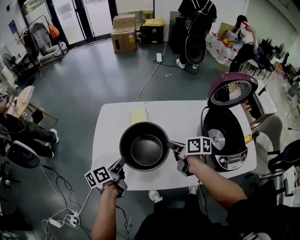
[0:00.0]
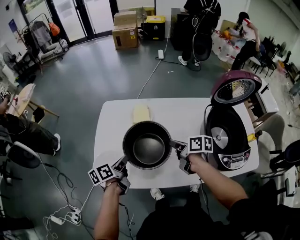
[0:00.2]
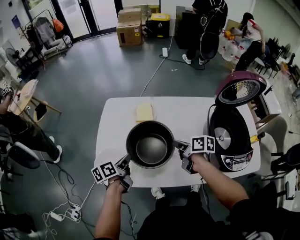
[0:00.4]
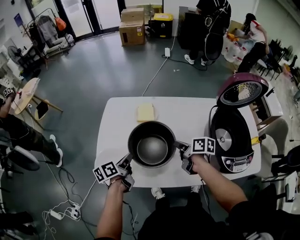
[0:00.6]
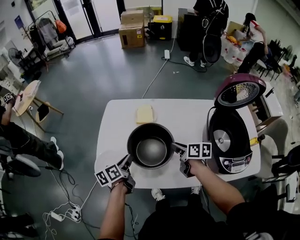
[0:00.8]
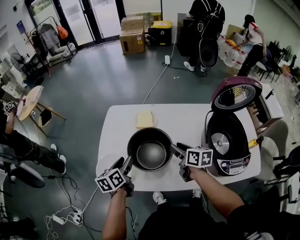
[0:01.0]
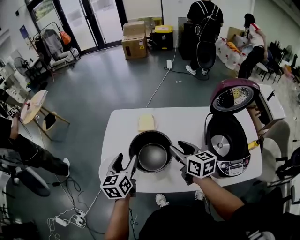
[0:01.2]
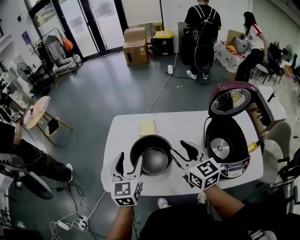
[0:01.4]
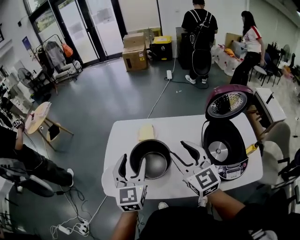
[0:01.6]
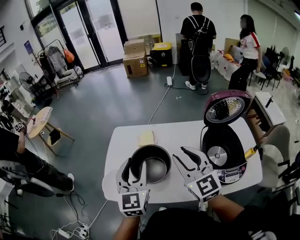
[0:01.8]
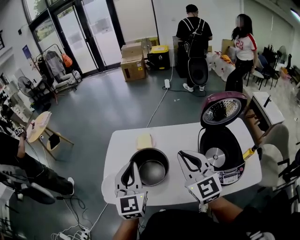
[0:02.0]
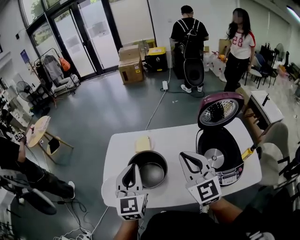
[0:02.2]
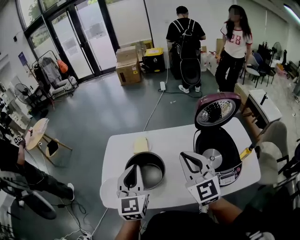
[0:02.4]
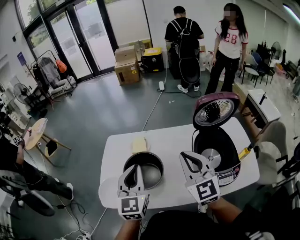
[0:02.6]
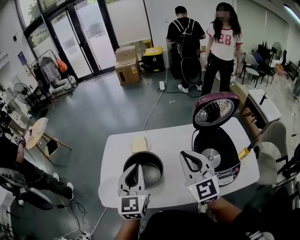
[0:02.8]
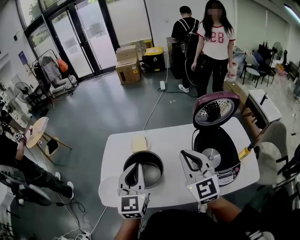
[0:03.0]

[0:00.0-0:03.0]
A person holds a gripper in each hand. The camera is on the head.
0:00.0 to 0:01.6: The left gripper travels upward and to the right by approximately 20 cm, rotates around the line of its fingers by about 60 degrees, clockwise from behind, and opens; the right gripper travels upward by about 20 cm, and twists roughly 60 degrees counterclockwise, seen from behind.
0:01.6 to 0:03.0: Both grippers move to the right, approximately 5 cm. The left gripper closes its fingers.

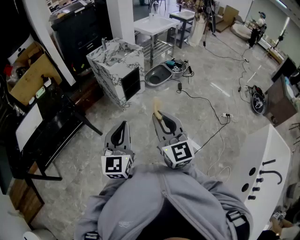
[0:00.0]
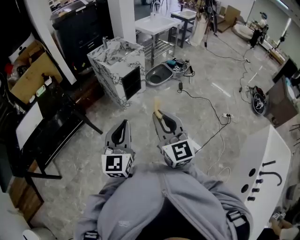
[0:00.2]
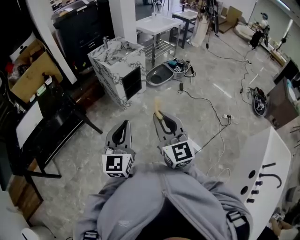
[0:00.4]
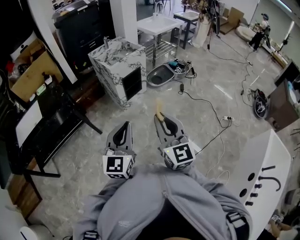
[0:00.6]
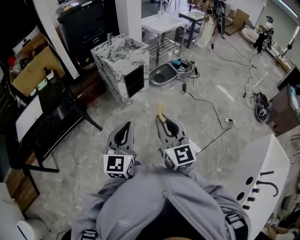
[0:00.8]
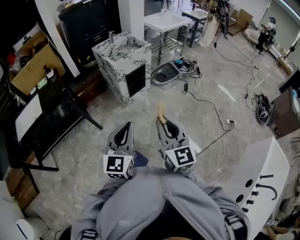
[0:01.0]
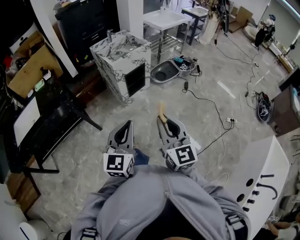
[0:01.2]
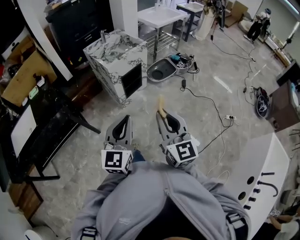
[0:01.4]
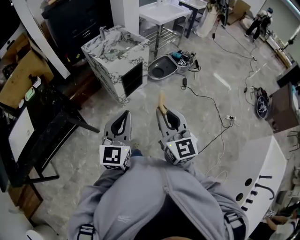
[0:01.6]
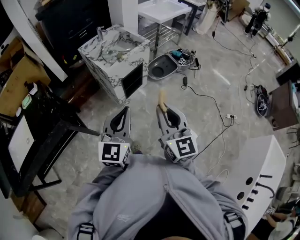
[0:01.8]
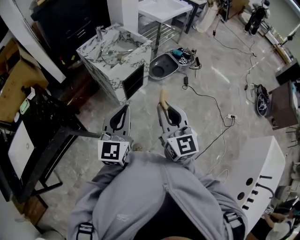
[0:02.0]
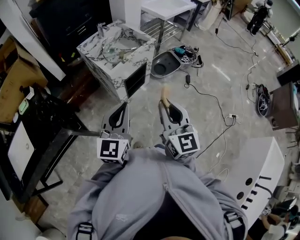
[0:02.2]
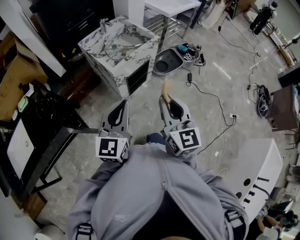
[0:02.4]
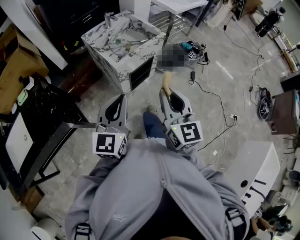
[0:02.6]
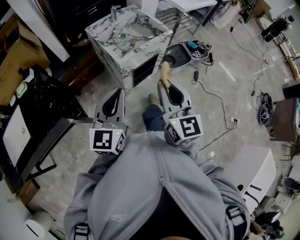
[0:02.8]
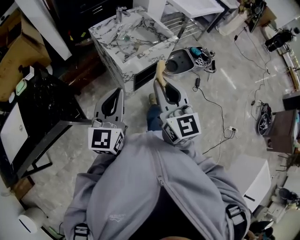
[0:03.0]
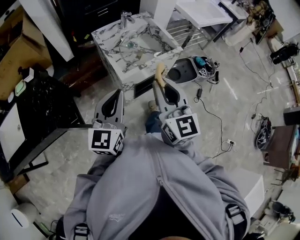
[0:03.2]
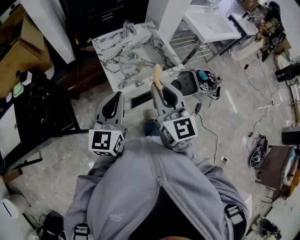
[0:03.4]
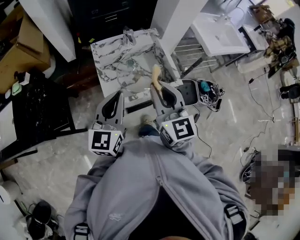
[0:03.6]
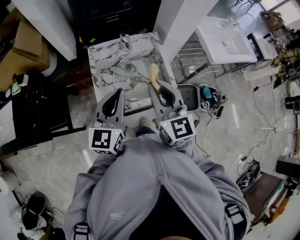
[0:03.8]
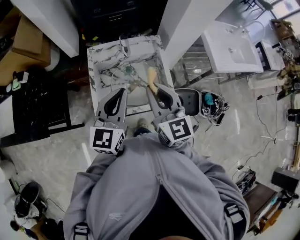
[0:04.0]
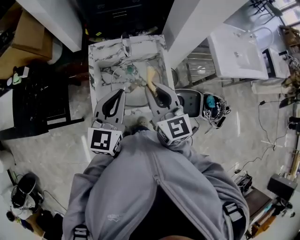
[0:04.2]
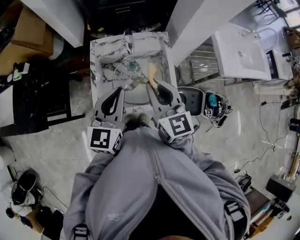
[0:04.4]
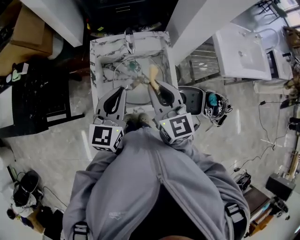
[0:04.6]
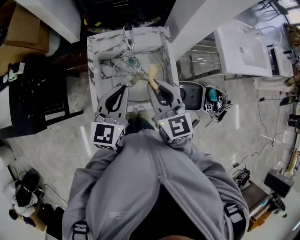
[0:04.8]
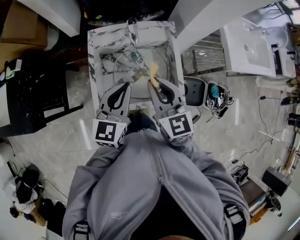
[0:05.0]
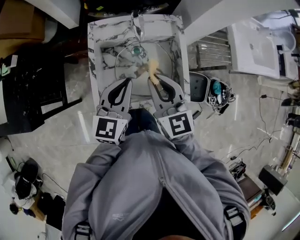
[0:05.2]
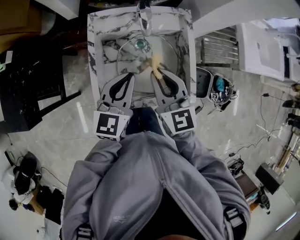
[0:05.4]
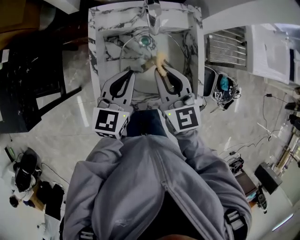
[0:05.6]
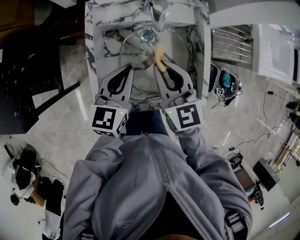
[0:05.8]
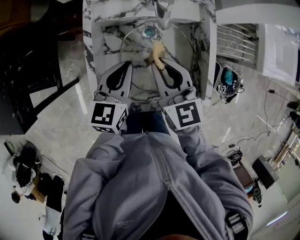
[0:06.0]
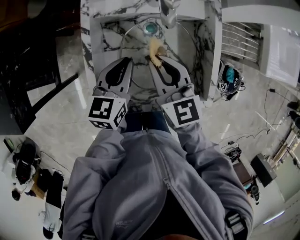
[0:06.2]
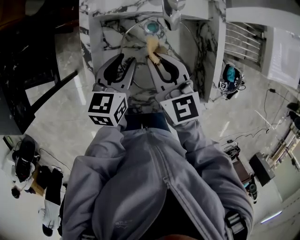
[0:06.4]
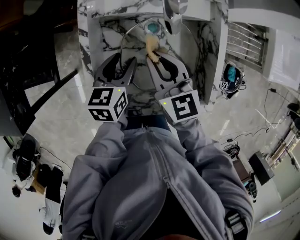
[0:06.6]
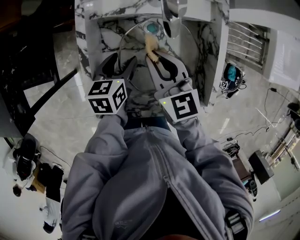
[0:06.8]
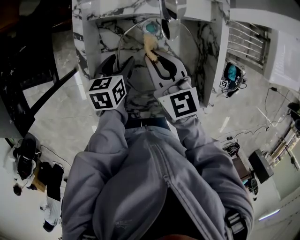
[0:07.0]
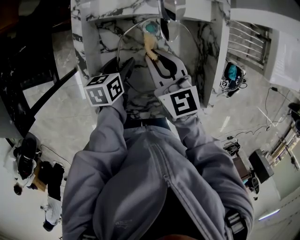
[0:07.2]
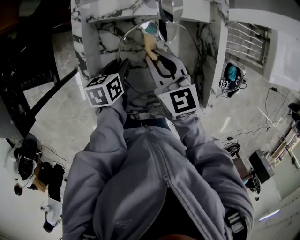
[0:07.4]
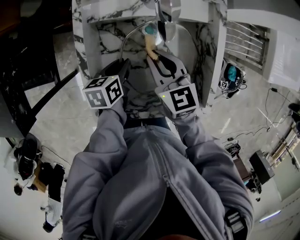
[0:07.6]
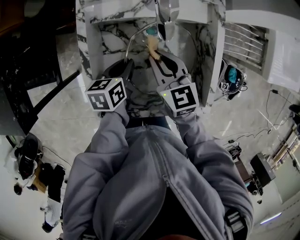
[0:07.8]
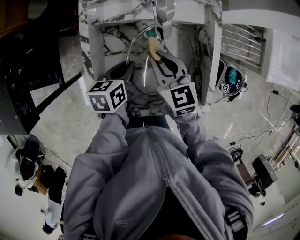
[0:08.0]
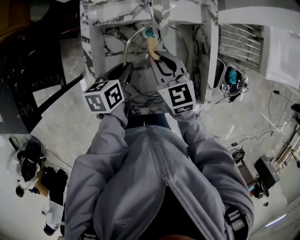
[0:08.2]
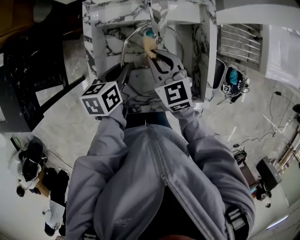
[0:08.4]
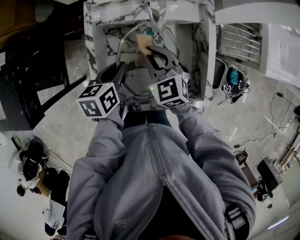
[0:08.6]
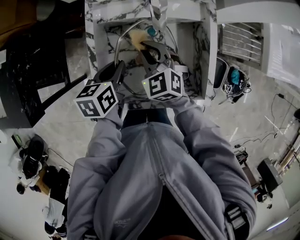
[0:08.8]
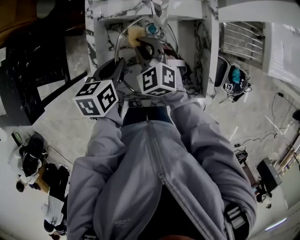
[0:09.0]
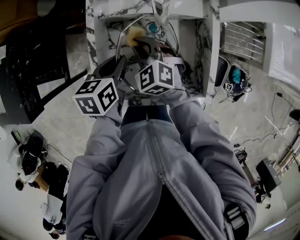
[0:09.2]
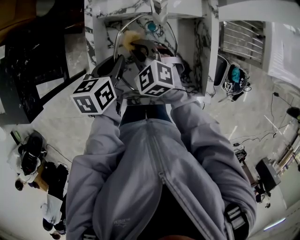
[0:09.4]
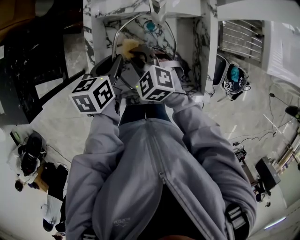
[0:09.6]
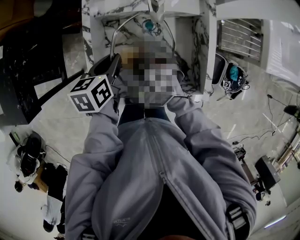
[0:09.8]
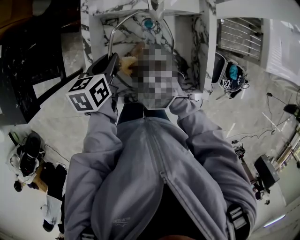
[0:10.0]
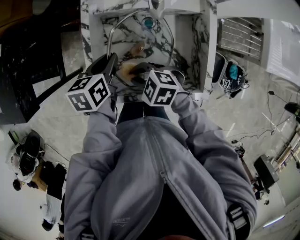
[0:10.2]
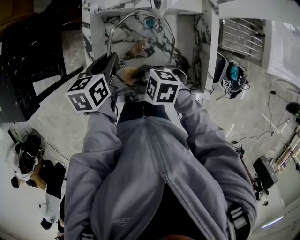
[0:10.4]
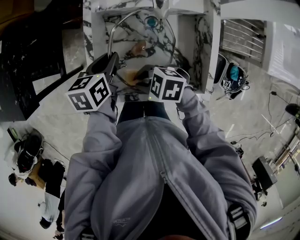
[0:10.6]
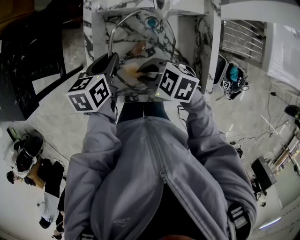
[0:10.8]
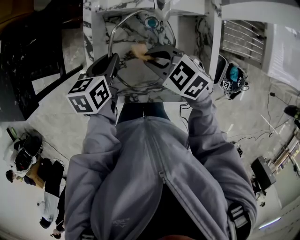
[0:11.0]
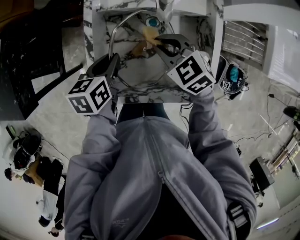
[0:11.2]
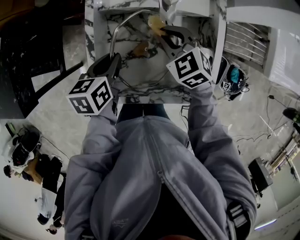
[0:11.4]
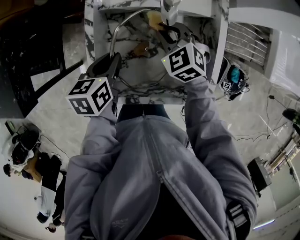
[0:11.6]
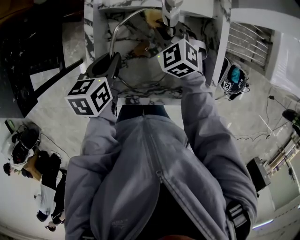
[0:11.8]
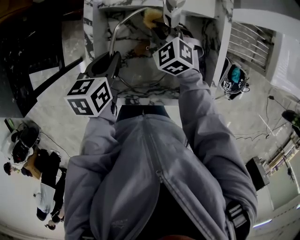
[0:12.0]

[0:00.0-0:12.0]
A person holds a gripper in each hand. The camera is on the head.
0:00.0 to 0:01.6: Both grippers travel together forward, some 25 cm.
0:01.6 to 0:03.0: The grippers both shift forward and to the left by approximately 35 cm.
0:03.0 to 0:04.4: The two grippers travel together, approximately 50 cm. The right gripper rotates approximately 40 degrees, while the left gripper rotates about 30 degrees.
0:04.4 to 0:06.0: The right gripper goes about 25 cm downward, forward and to the left. The left gripper heads downward and forward, covering some 30 cm, and changes its angle by some 20 degrees.
0:06.0 to 0:07.6: The right gripper goes approximately 10 cm downward, while the left gripper heads downward, covering some 15 cm, swivels approximately 40 degrees, and opens, then closes once more.
0:07.6 to 0:09.0: The left gripper goes roughly 10 cm upward; the right gripper changes its angle by roughly 40 degrees.
0:09.0 to 0:10.4: The right gripper ends up about 20 cm from where it was, and changes its angle by roughly 50 degrees.
0:10.4 to 0:12.0: The right gripper changes place by roughly 25 cm, and turns by about 40 degrees.

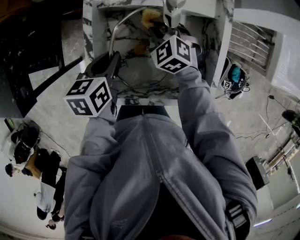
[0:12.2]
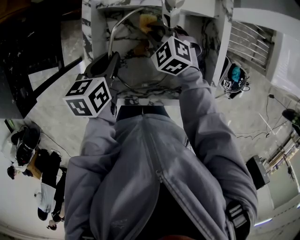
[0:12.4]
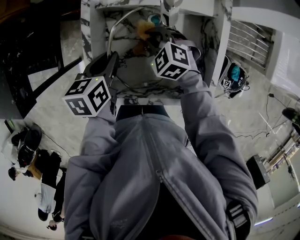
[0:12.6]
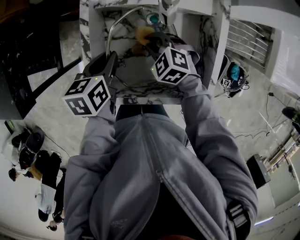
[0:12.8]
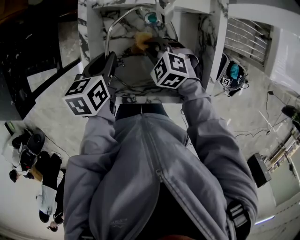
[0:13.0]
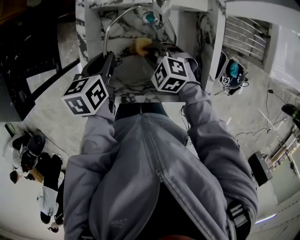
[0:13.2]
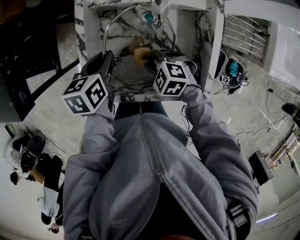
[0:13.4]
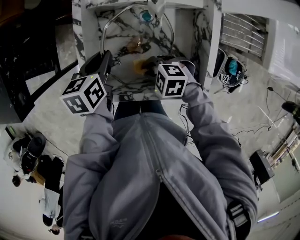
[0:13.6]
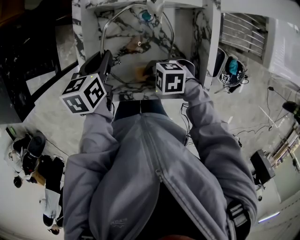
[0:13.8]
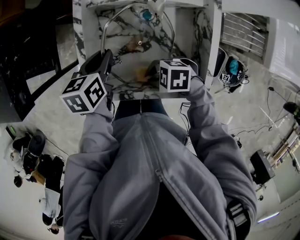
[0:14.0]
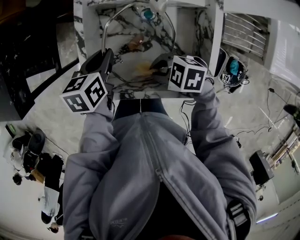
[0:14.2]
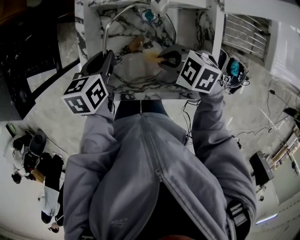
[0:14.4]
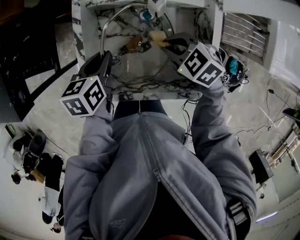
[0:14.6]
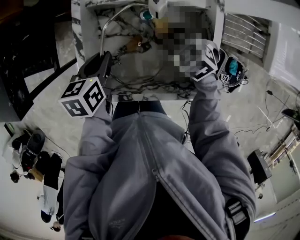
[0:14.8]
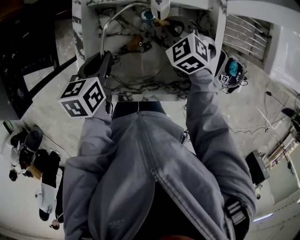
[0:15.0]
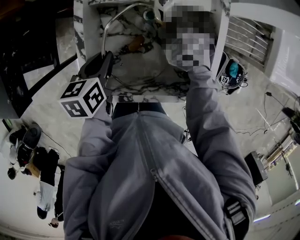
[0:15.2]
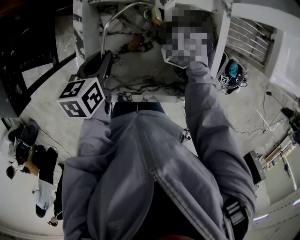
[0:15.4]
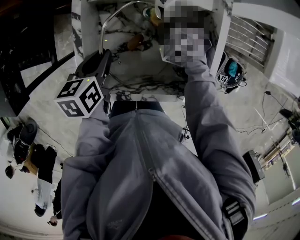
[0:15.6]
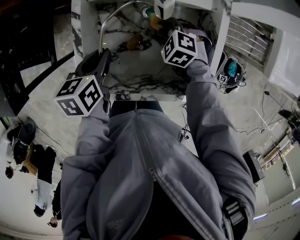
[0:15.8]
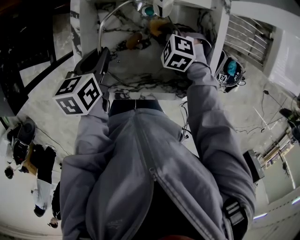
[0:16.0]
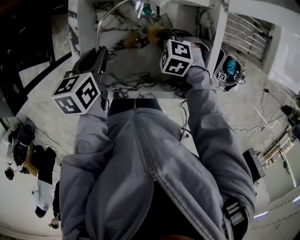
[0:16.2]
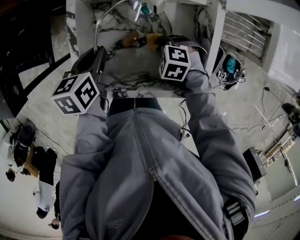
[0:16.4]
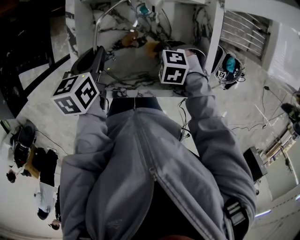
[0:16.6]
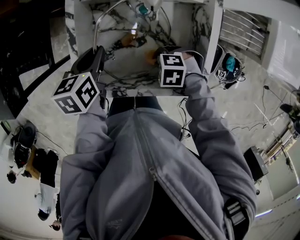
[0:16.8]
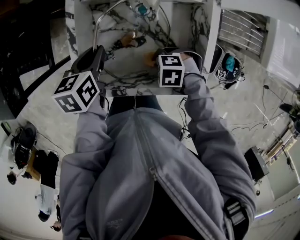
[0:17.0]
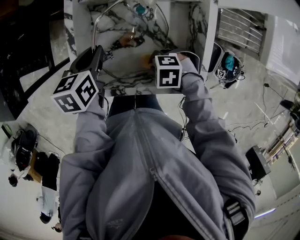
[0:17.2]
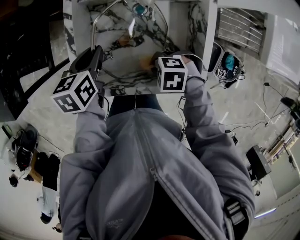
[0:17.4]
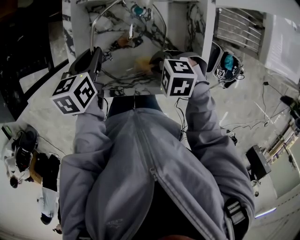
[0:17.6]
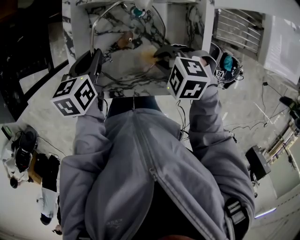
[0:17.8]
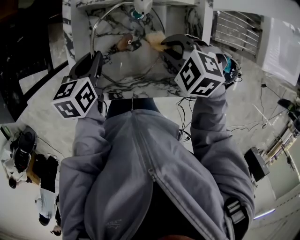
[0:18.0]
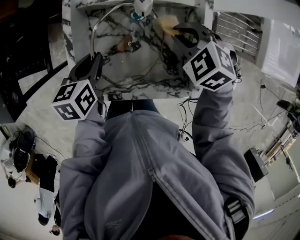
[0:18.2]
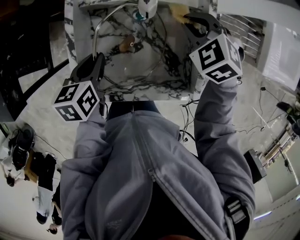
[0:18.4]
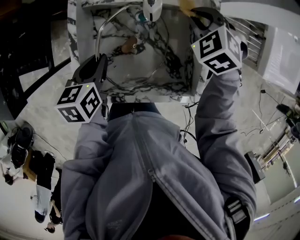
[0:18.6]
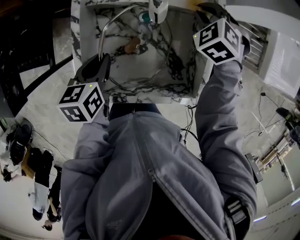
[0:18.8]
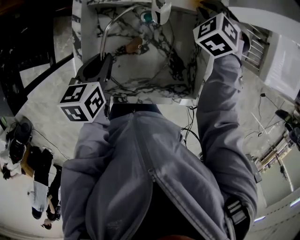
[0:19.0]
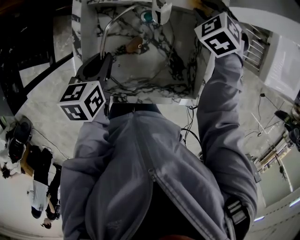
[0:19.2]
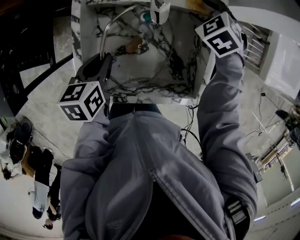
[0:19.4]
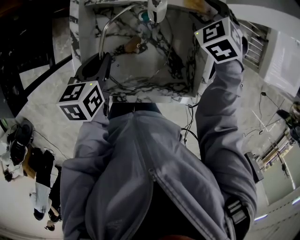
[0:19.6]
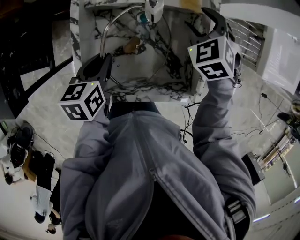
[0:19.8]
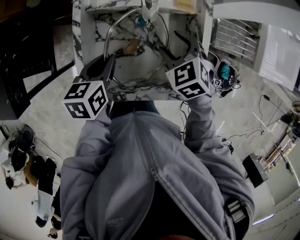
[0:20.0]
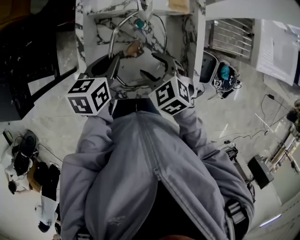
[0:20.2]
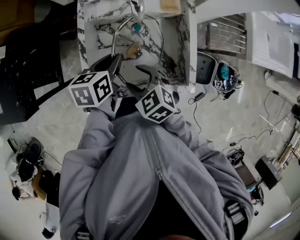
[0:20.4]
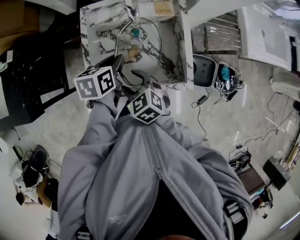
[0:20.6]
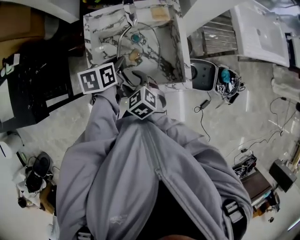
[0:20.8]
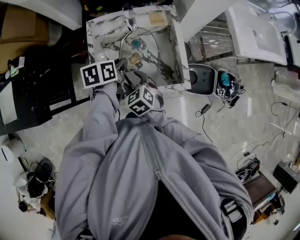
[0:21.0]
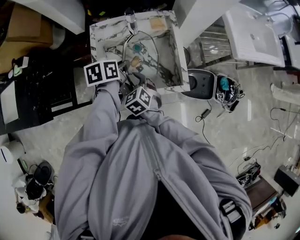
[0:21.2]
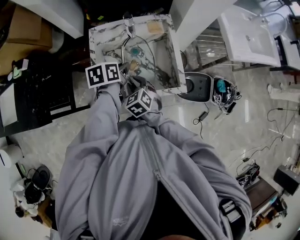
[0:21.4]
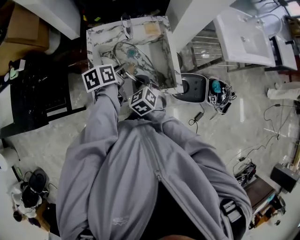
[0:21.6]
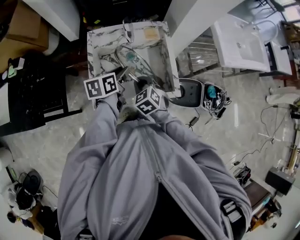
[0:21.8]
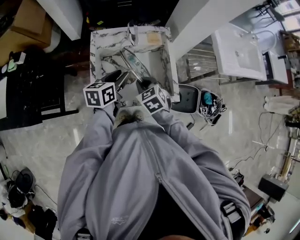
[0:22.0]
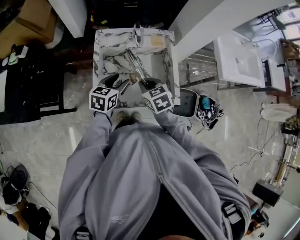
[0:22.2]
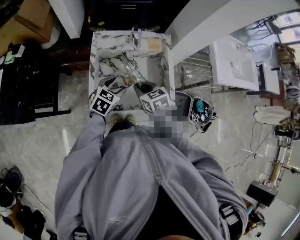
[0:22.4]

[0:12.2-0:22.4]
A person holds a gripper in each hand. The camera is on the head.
0:12.2 to 0:13.6: The right gripper shifts by approximately 20 cm, and changes its angle by some 40 degrees.
0:13.6 to 0:15.2: The right gripper shifts by about 20 cm, and turns by about 40 degrees.
0:15.2 to 0:16.6: The right gripper changes place by some 15 cm, and rotates approximately 40 degrees.
0:16.6 to 0:18.0: The right gripper moves upward, about 15 cm.
0:18.0 to 0:19.4: The right gripper changes place by approximately 20 cm, changes its angle by roughly 20 degrees, and opens.
0:19.4 to 0:21.0: The right gripper heads backward and to the left, covering about 35 cm, and changes its angle by some 30 degrees. Meanwhile the left gripper goes about 15 cm upward and to the right.
0:21.0 to 0:22.4: The left gripper shifts about 5 cm backward, twists about 40 degrees clockwise, seen from behind, and opens. The right gripper heads upward, covering approximately 5 cm, and closes its fingers.
